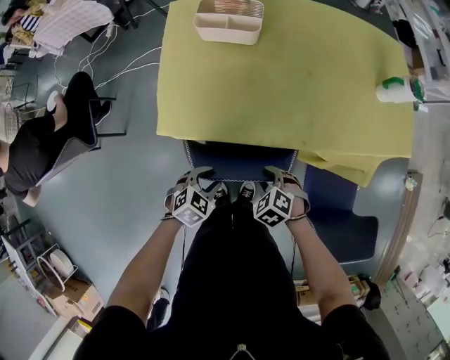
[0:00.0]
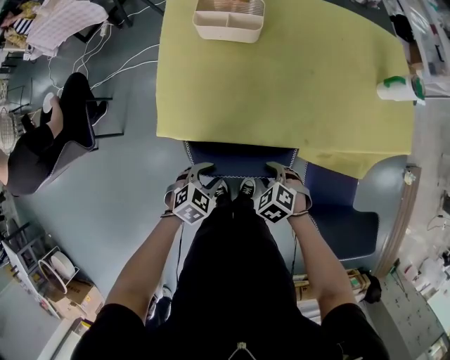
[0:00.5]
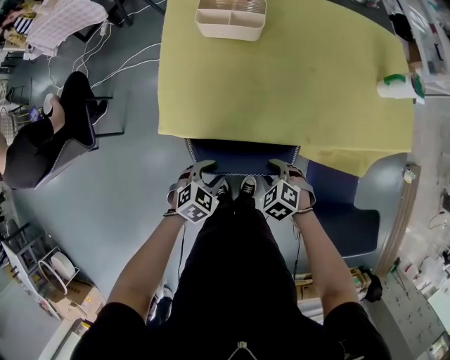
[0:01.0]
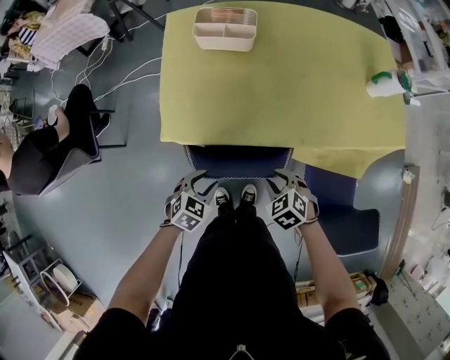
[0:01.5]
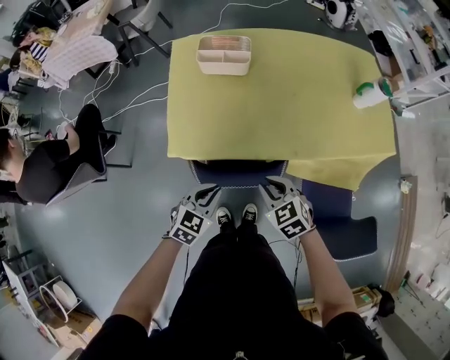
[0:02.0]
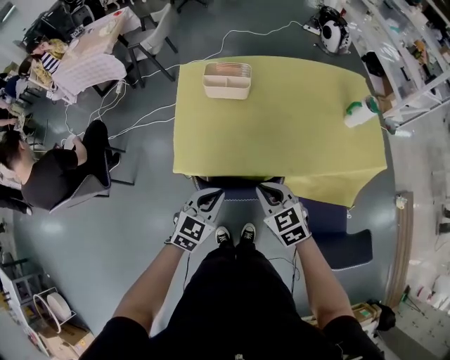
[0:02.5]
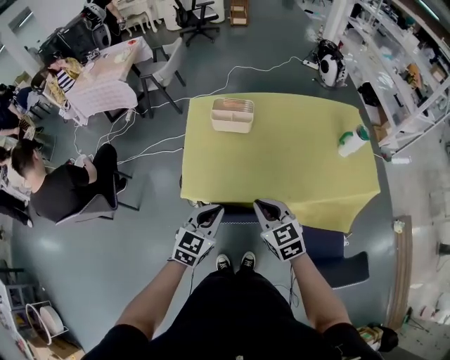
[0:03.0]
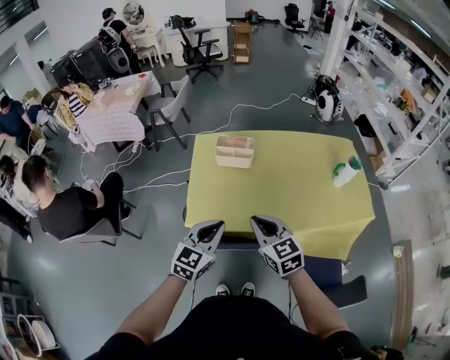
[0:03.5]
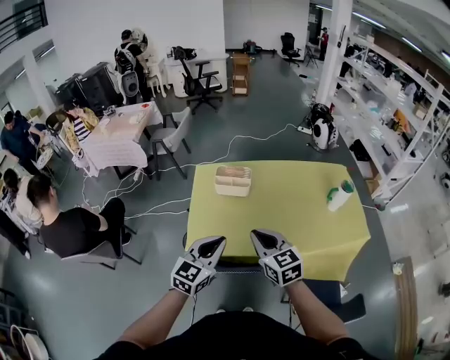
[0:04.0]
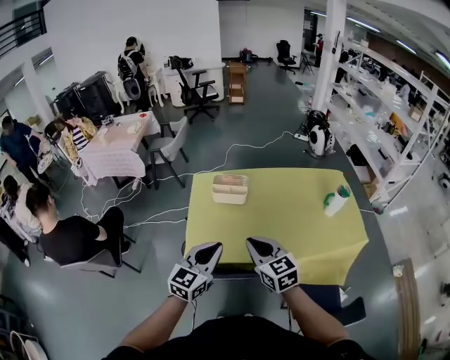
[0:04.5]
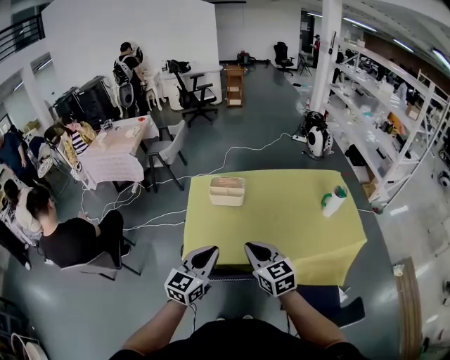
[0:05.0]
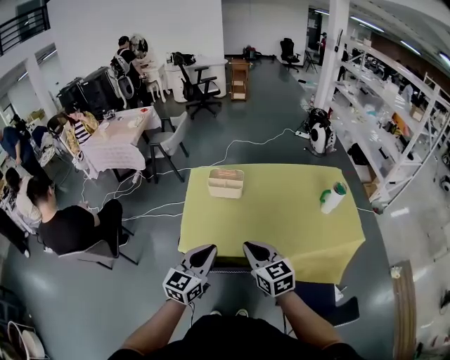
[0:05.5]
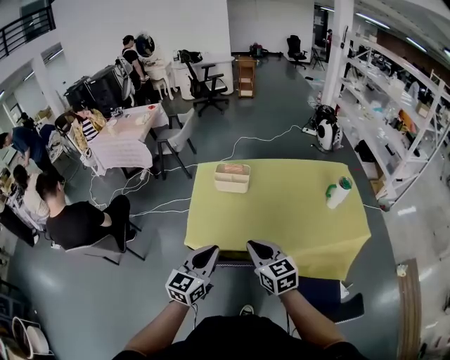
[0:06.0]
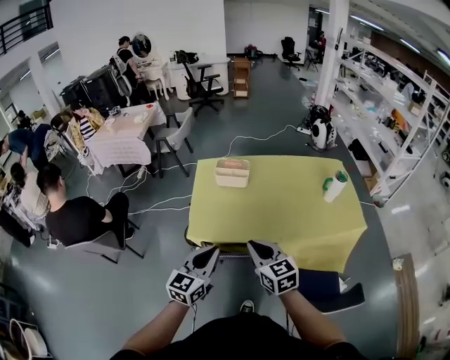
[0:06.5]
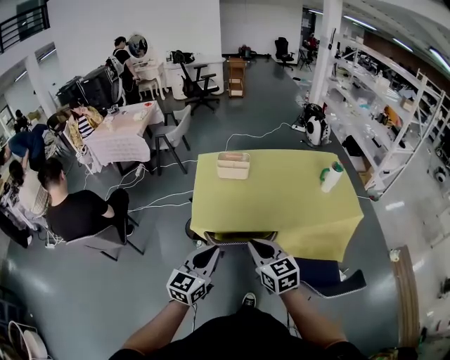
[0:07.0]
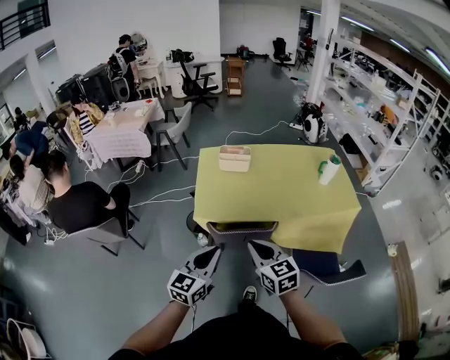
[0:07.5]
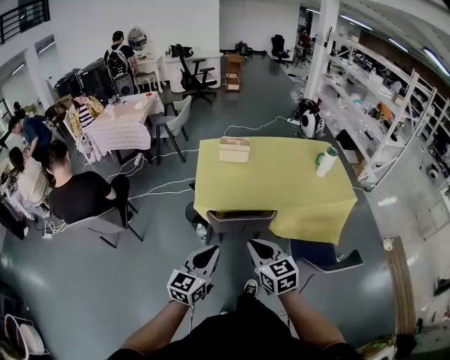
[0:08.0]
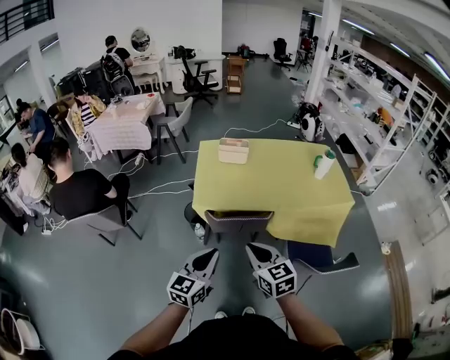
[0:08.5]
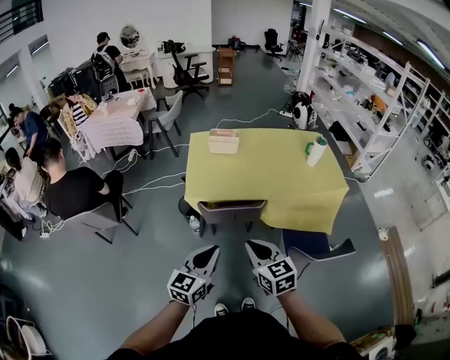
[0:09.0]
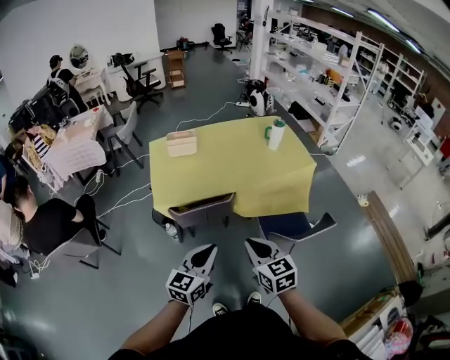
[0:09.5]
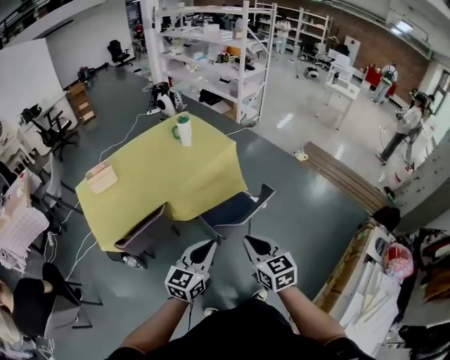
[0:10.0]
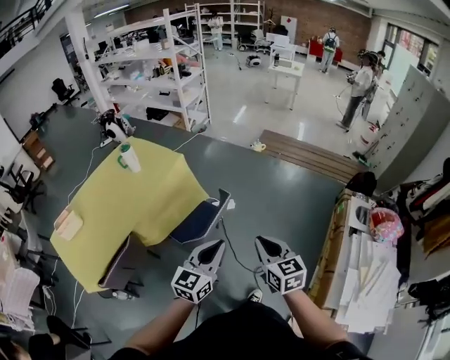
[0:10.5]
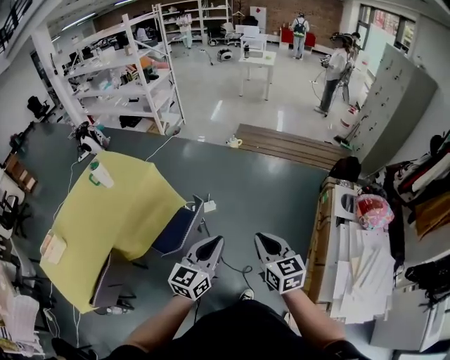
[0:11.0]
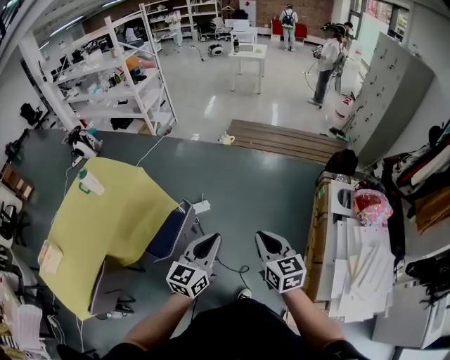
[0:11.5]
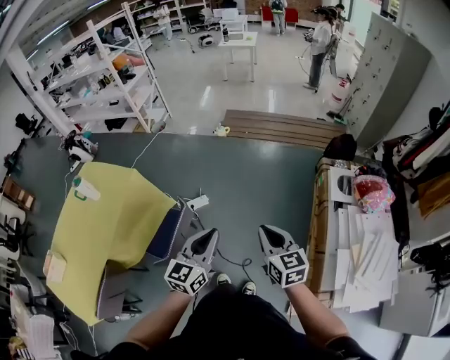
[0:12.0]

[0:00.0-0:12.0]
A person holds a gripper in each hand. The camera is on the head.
0:00.0 to 0:02.0: Both grippers travel together upward, approximately 15 cm. The right gripper changes its angle by roughly 30 degrees; the left gripper rotates roughly 20 degrees, and closes its fingers.
0:02.0 to 0:04.0: The two grippers go approximately 30 cm upward. The left gripper rotates about 30 degrees. Meanwhile the right gripper swivels about 30 degrees.
0:04.0 to 0:06.0: The two grippers go approximately 5 cm backward.
0:06.0 to 0:08.0: Both grippers travel together backward, some 25 cm.
0:08.0 to 0:10.0: The left gripper ends up about 35 cm from where it was, and changes its angle by some 40 degrees. The right gripper moves about 35 cm, and changes its angle by some 40 degrees.
0:10.0 to 0:12.0: The two grippers travel together, about 50 cm. The right gripper rotates about 40 degrees, while the left gripper turns by roughly 30 degrees.

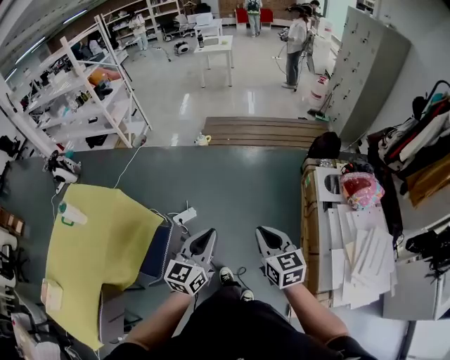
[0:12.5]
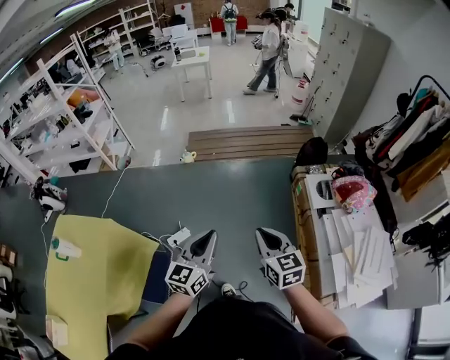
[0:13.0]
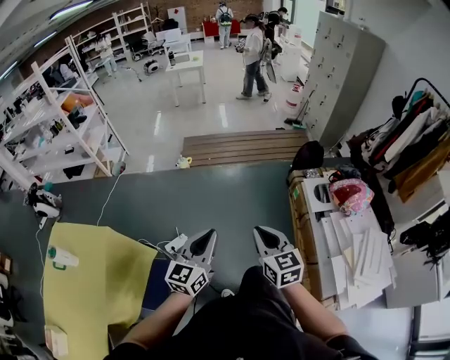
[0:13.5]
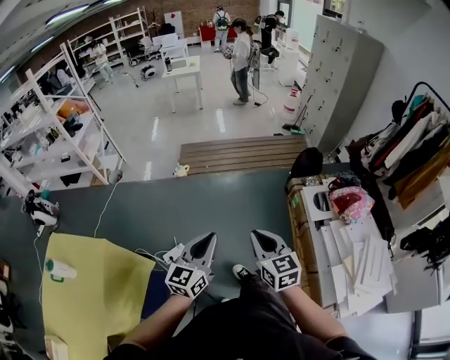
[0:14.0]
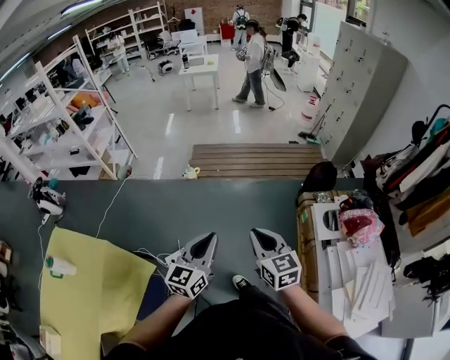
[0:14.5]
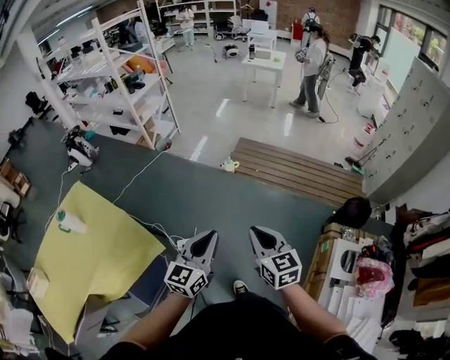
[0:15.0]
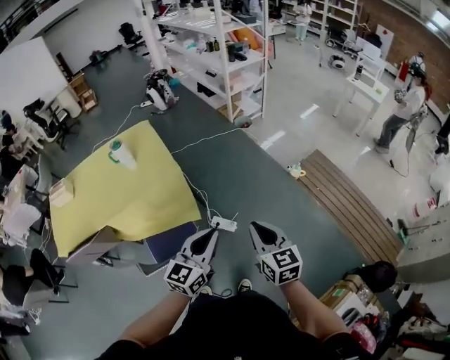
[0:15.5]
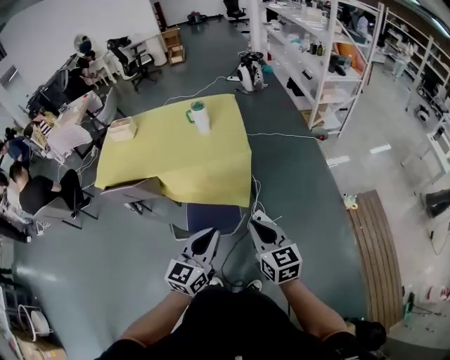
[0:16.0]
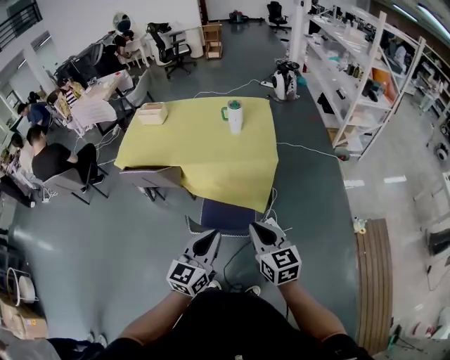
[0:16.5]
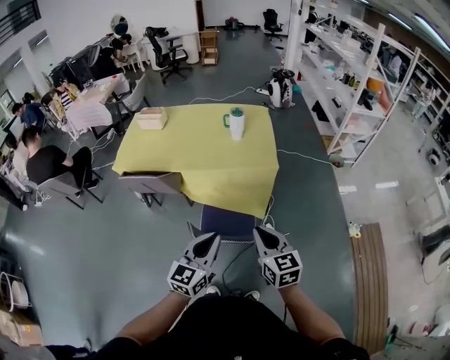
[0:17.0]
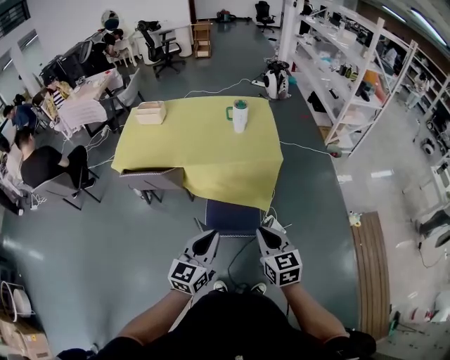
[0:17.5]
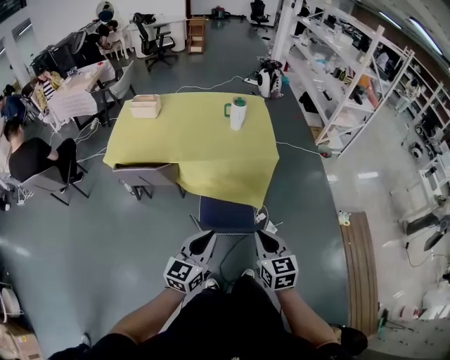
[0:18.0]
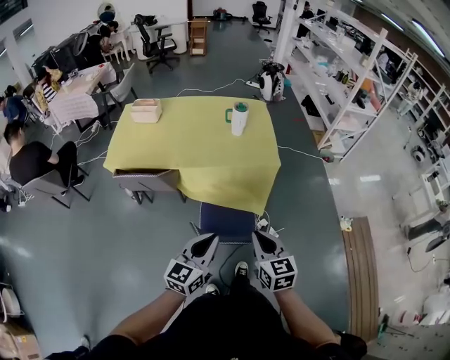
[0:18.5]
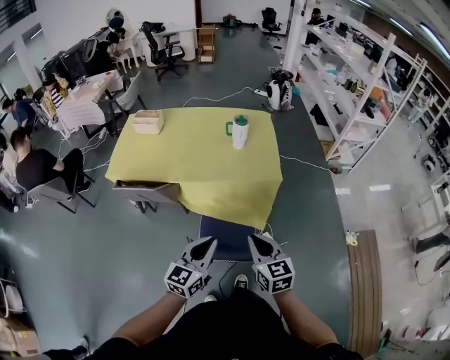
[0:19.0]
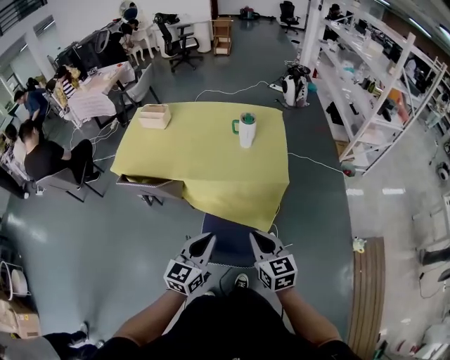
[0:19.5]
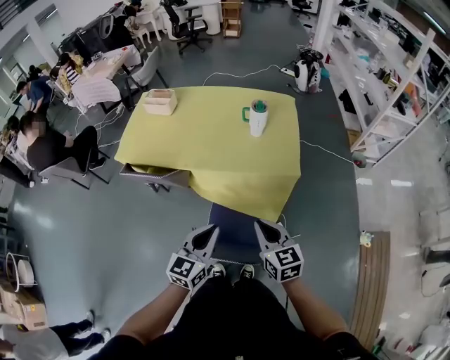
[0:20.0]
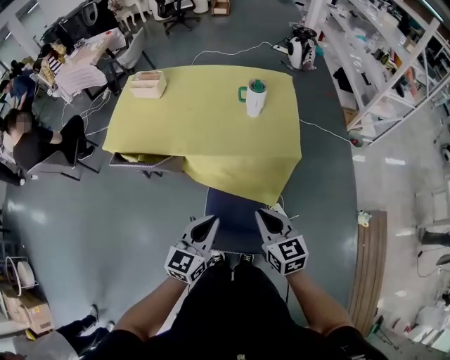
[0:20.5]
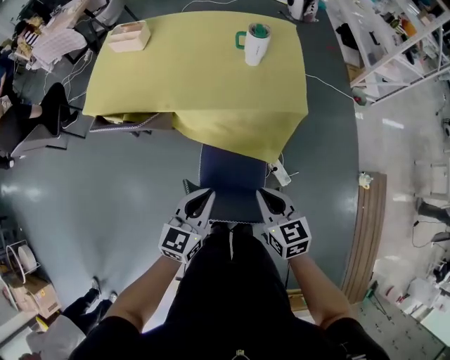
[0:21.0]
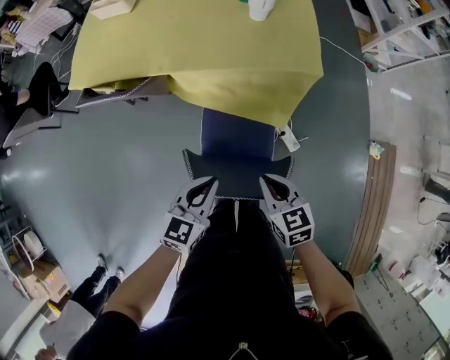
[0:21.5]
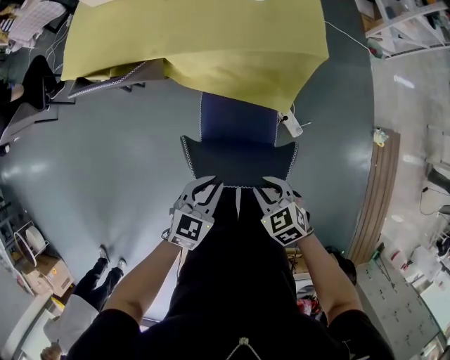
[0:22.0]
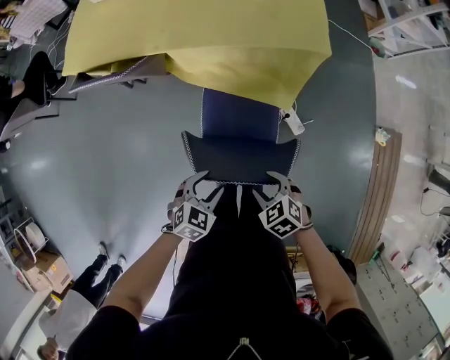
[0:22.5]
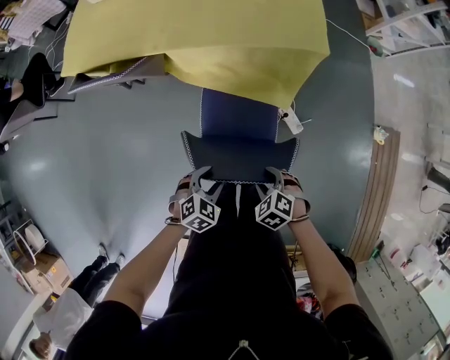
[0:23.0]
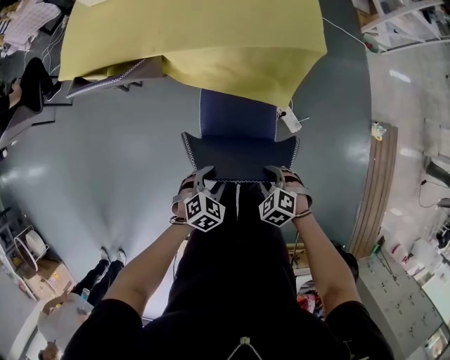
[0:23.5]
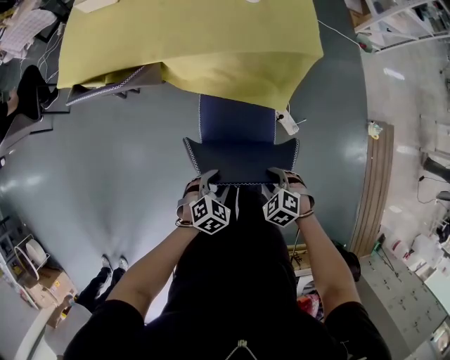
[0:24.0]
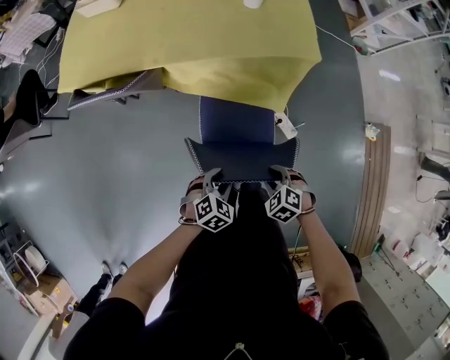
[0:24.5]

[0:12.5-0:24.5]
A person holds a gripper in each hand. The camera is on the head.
0:12.5 to 0:14.5: The two grippers go roughly 25 cm forward.
0:14.5 to 0:16.5: The right gripper shifts by roughly 40 cm, and swivels approximately 90 degrees, while the left gripper ends up about 35 cm from where it was, and changes its angle by roughly 90 degrees.
0:16.5 to 0:18.5: The two grippers go roughly 15 cm to the left.
0:18.5 to 0:20.5: The grippers both shift forward by some 20 cm.
0:20.5 to 0:22.5: The two grippers go about 30 cm downward and backward. The left gripper tilts its fingers approximately 40 degrees downward, and opens its fingers; the right gripper tips its fingers downward by roughly 40 degrees, and opens.
0:22.5 to 0:24.5: The grippers make only small movements.

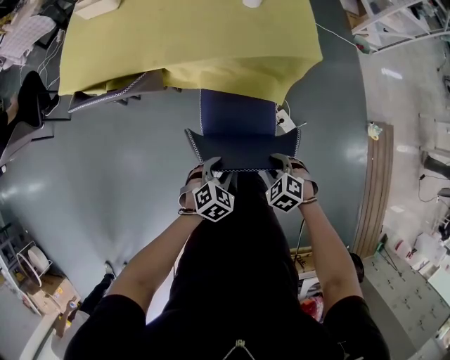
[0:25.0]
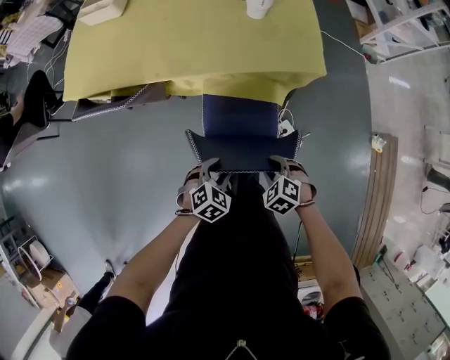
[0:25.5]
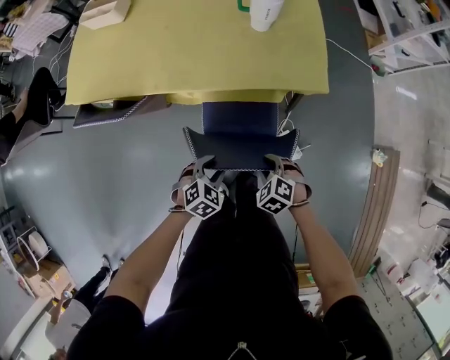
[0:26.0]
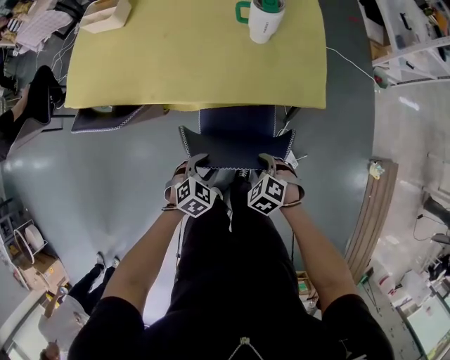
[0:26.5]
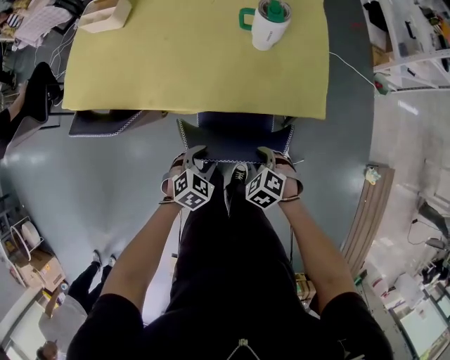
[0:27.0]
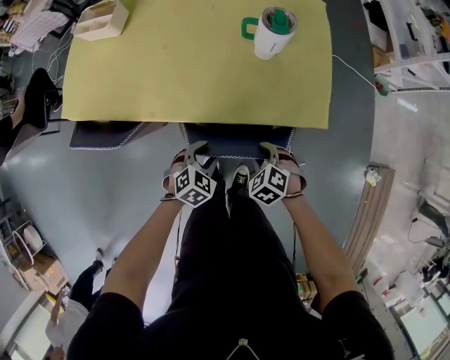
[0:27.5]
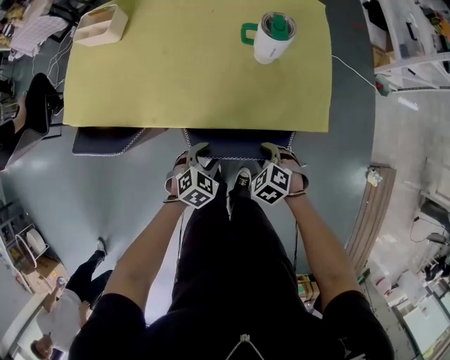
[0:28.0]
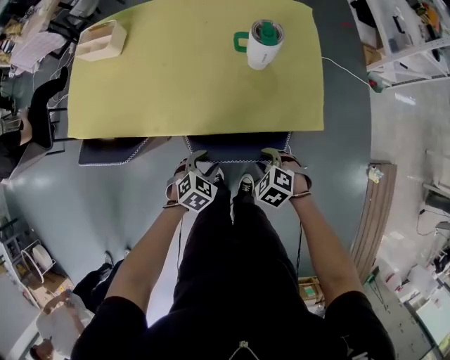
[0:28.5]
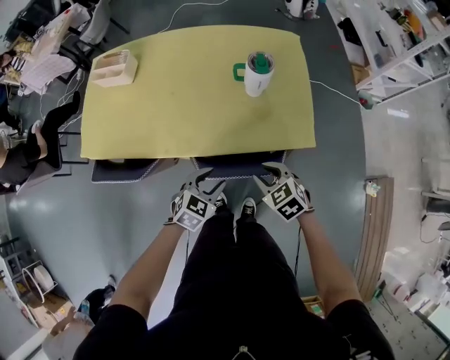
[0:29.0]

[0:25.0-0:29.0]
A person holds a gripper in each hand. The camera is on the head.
0:25.0 to 0:27.0: Both grippers move forward, roughly 25 cm.
0:27.0 to 0:29.0: The grippers both shift upward and forward by about 15 cm. The right gripper turns by about 30 degrees.
